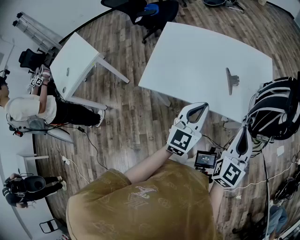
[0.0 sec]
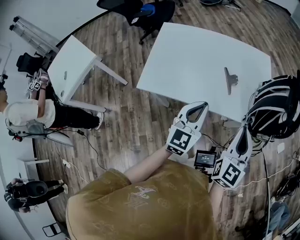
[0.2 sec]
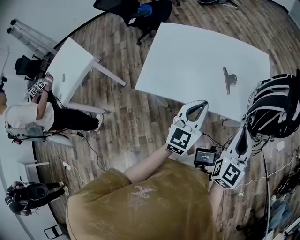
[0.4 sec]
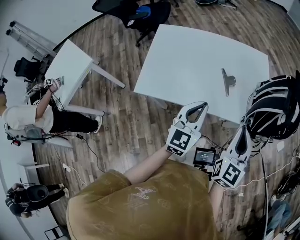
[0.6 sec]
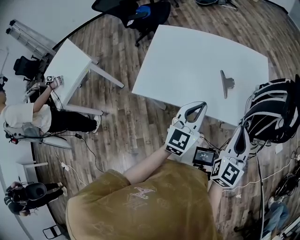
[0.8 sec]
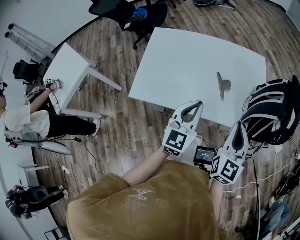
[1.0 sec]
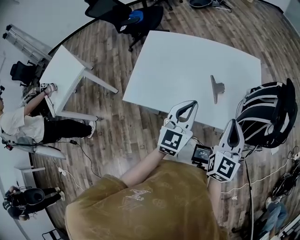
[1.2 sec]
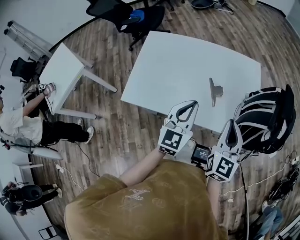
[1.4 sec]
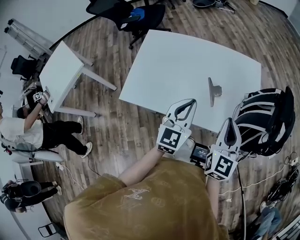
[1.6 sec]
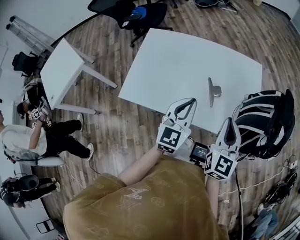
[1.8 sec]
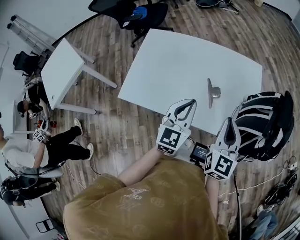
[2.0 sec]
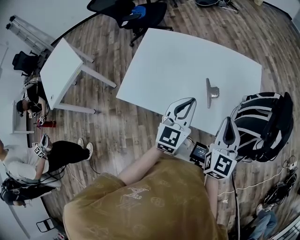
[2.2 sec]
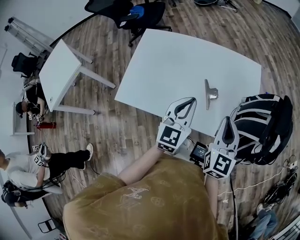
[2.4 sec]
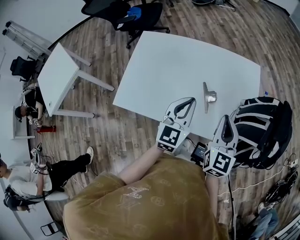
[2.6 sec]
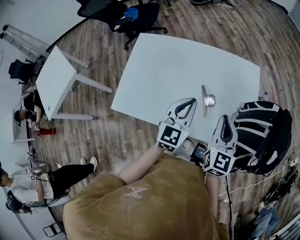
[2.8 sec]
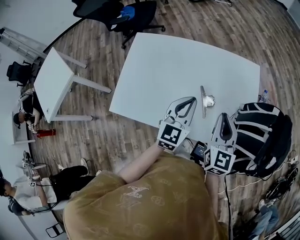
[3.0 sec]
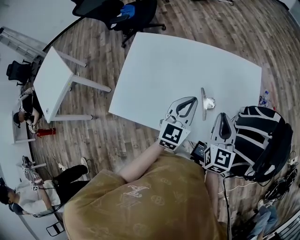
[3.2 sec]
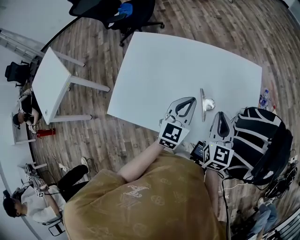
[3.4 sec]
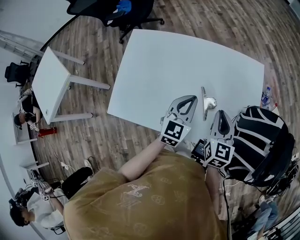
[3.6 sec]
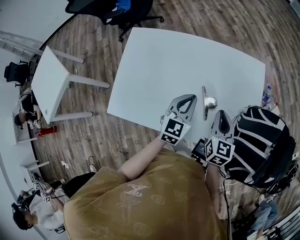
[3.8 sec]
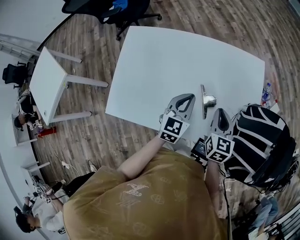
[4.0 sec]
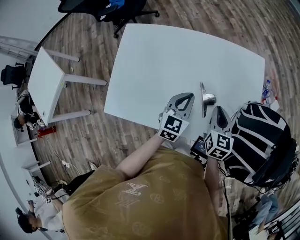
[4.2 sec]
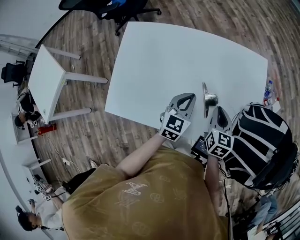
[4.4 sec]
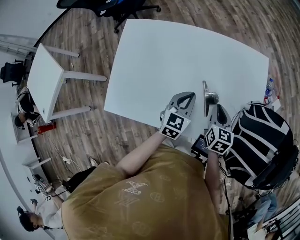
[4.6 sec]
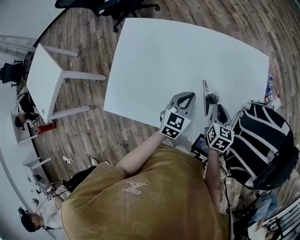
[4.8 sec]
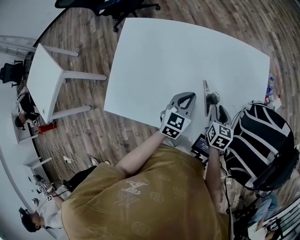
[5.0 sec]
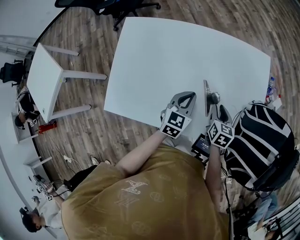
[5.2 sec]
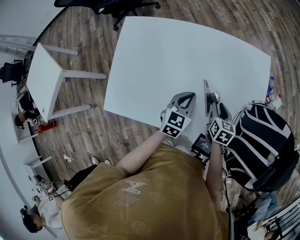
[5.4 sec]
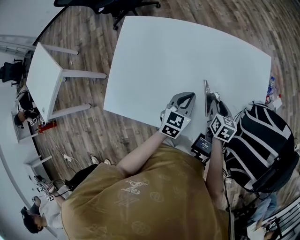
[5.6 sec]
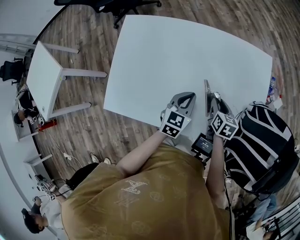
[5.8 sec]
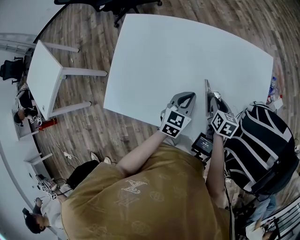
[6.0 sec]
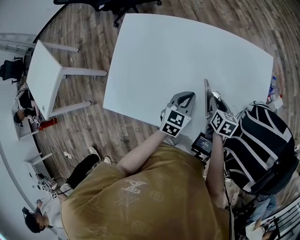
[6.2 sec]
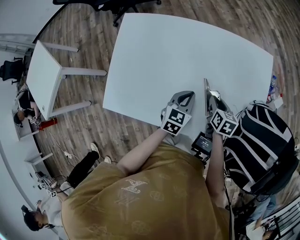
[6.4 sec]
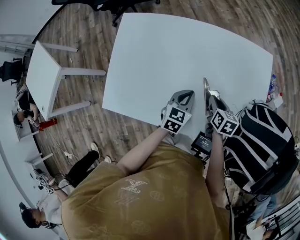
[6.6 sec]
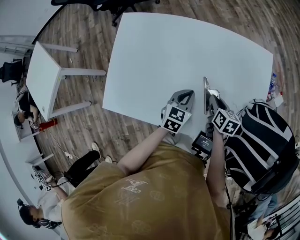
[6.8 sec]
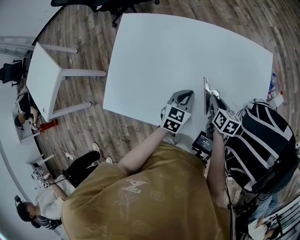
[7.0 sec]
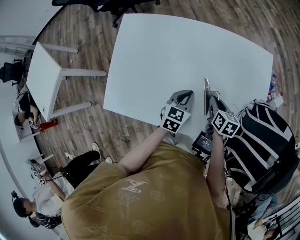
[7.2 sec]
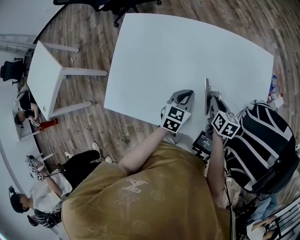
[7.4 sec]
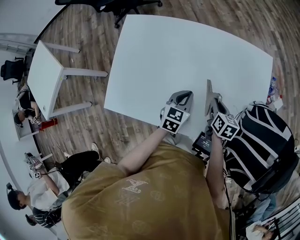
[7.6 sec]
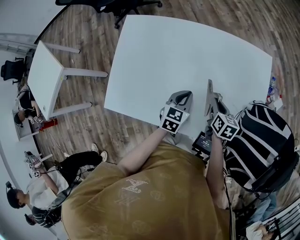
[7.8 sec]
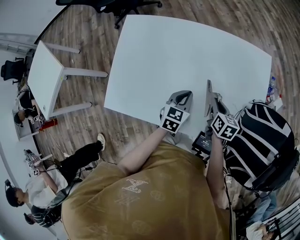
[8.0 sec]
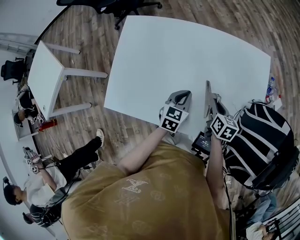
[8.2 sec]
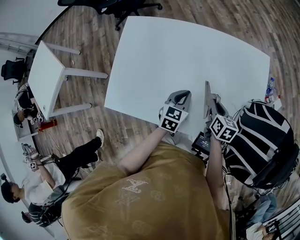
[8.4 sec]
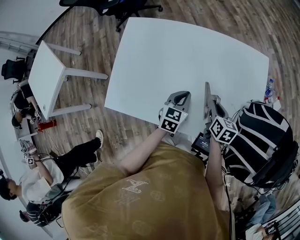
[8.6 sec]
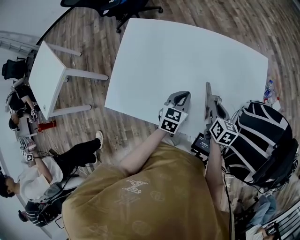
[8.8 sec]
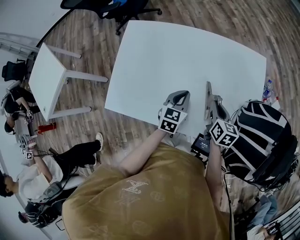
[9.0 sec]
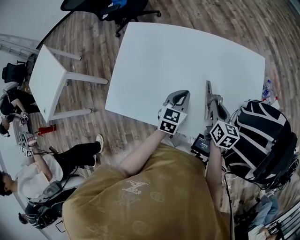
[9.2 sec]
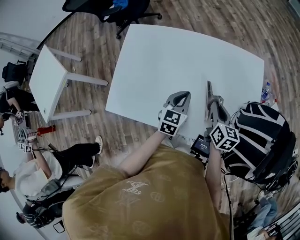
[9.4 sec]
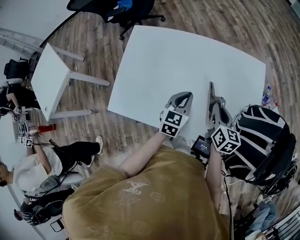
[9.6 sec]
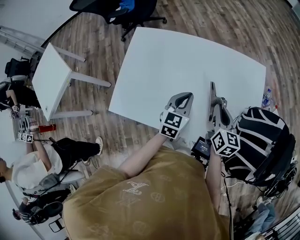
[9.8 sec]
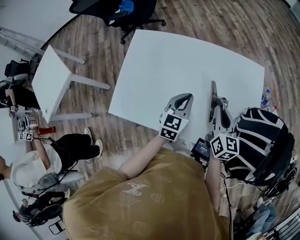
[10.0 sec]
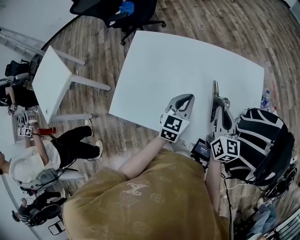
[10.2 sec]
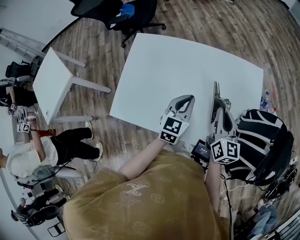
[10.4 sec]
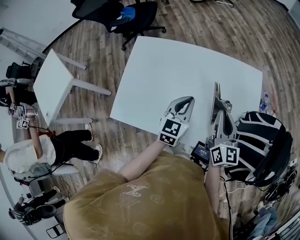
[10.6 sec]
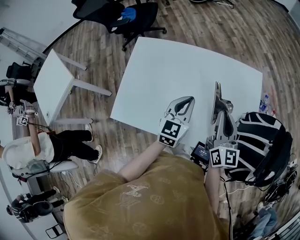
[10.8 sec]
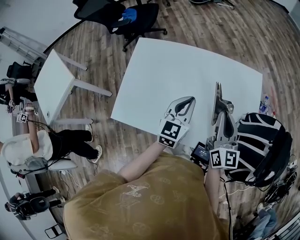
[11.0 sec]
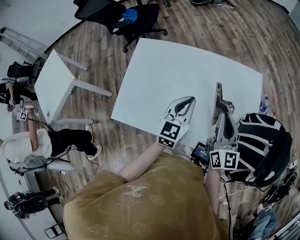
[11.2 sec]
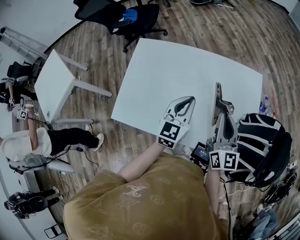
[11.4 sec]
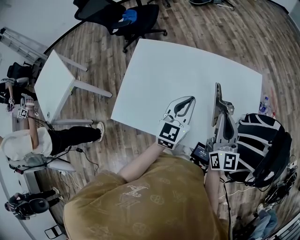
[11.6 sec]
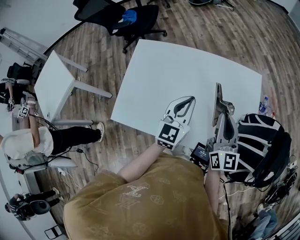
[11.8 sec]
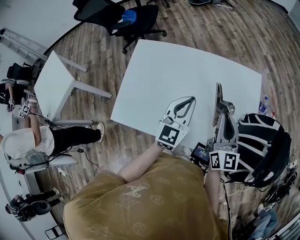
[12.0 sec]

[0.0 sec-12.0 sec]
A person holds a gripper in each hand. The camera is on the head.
0.0 sec to 1.6 sec: The two grippers go roughly 10 cm forward.
1.6 sec to 3.0 sec: Both grippers move forward, about 10 cm.
3.0 sec to 4.4 sec: The grippers both shift downward by approximately 15 cm. The right gripper changes its angle by roughly 20 degrees.
4.4 sec to 6.0 sec: The right gripper is displaced downward by approximately 10 cm, and opens.
6.0 sec to 7.6 sec: The grippers move only a little.
7.6 sec to 9.0 sec: The right gripper moves upward, some 5 cm.
9.0 sec to 10.4 sec: The two grippers go some 10 cm upward. The right gripper turns by some 30 degrees.
10.4 sec to 12.0 sec: The grippers both shift upward by some 5 cm.

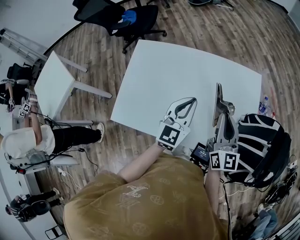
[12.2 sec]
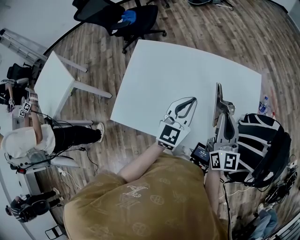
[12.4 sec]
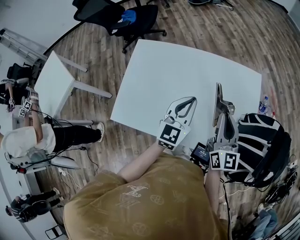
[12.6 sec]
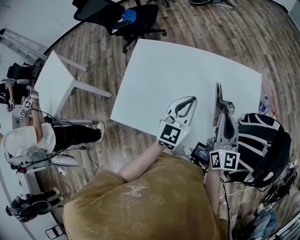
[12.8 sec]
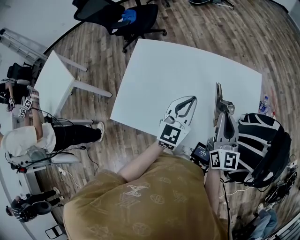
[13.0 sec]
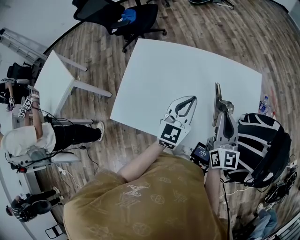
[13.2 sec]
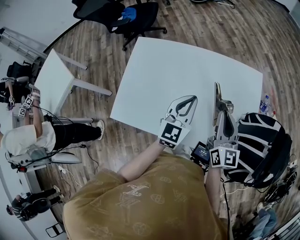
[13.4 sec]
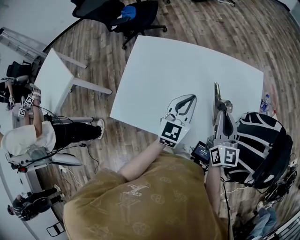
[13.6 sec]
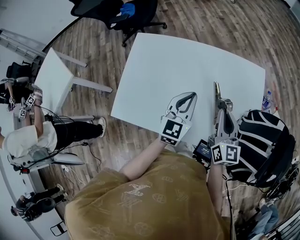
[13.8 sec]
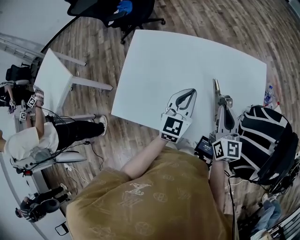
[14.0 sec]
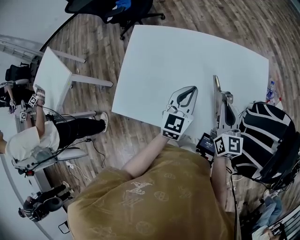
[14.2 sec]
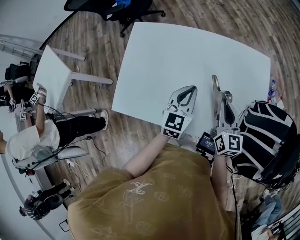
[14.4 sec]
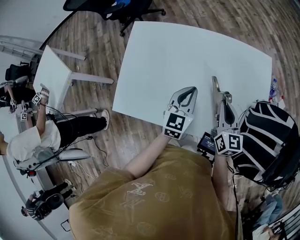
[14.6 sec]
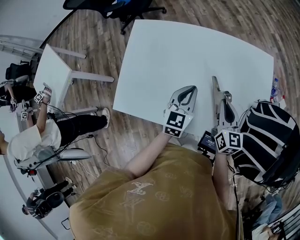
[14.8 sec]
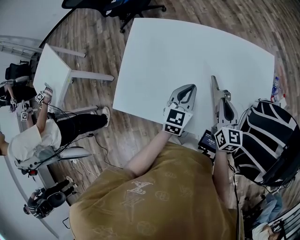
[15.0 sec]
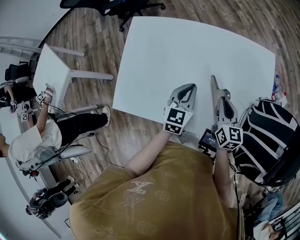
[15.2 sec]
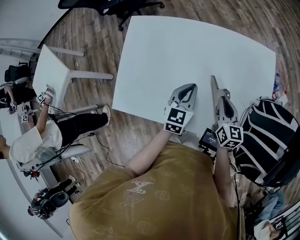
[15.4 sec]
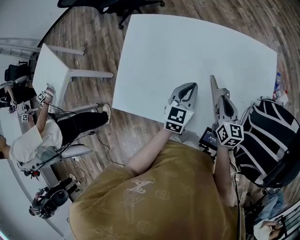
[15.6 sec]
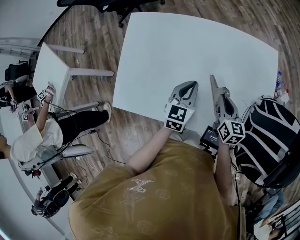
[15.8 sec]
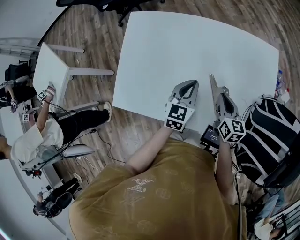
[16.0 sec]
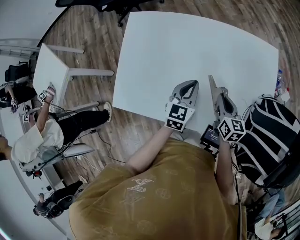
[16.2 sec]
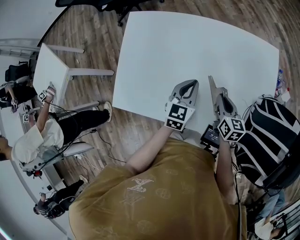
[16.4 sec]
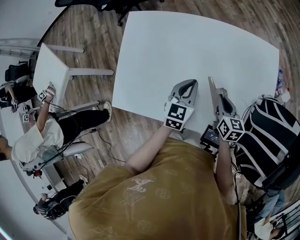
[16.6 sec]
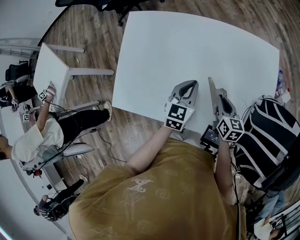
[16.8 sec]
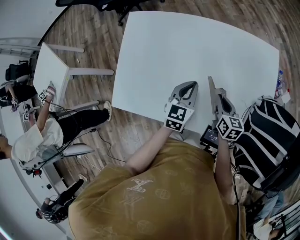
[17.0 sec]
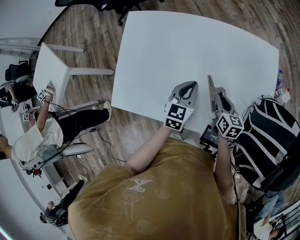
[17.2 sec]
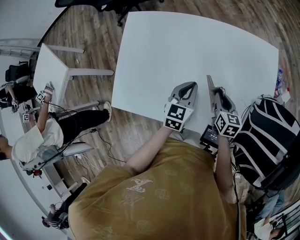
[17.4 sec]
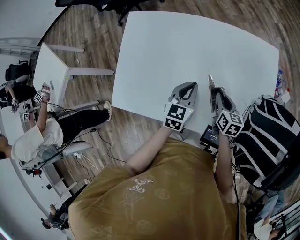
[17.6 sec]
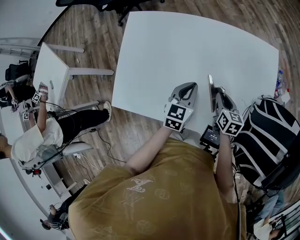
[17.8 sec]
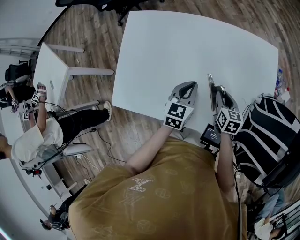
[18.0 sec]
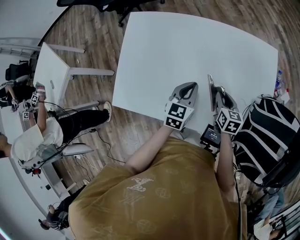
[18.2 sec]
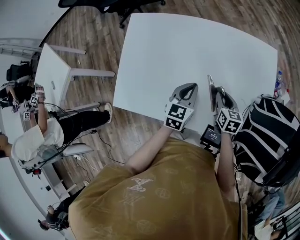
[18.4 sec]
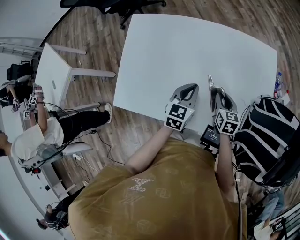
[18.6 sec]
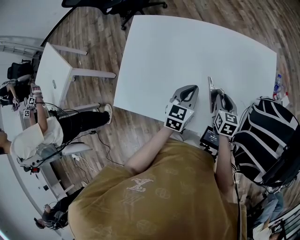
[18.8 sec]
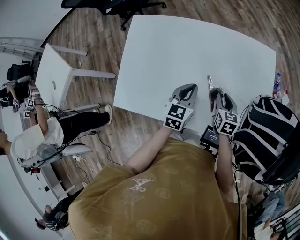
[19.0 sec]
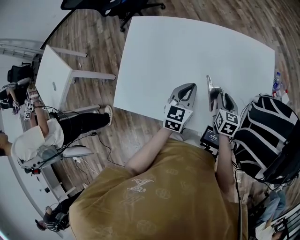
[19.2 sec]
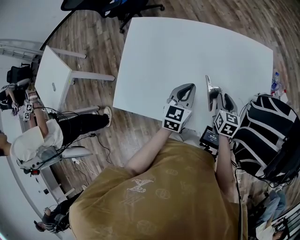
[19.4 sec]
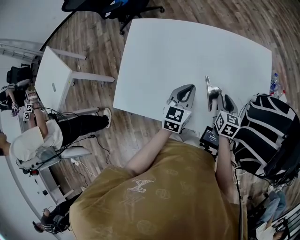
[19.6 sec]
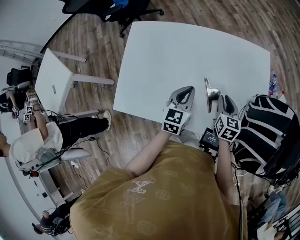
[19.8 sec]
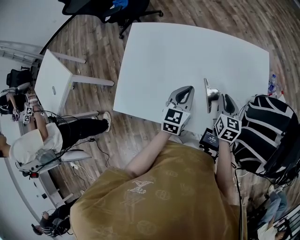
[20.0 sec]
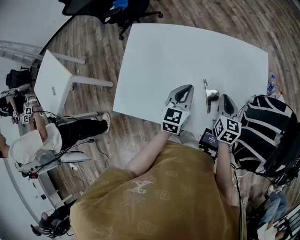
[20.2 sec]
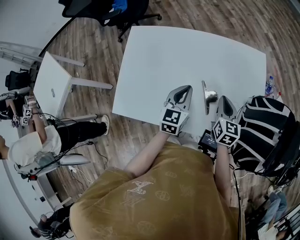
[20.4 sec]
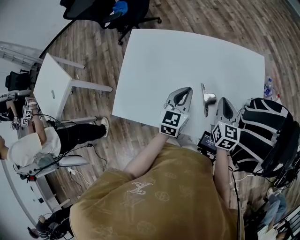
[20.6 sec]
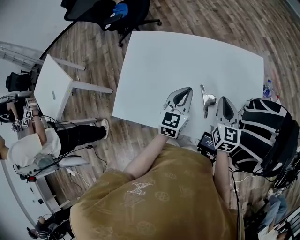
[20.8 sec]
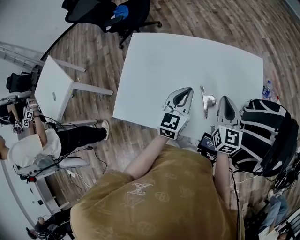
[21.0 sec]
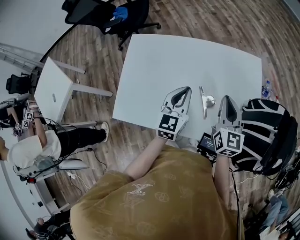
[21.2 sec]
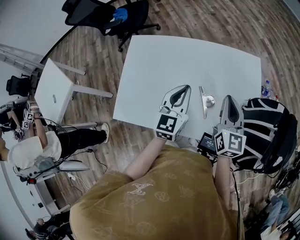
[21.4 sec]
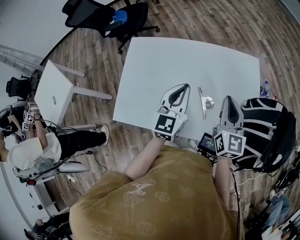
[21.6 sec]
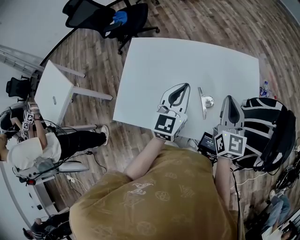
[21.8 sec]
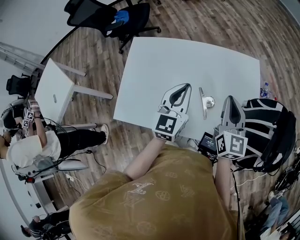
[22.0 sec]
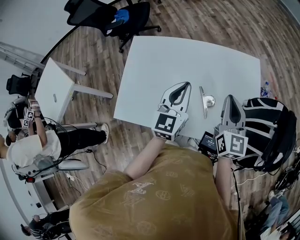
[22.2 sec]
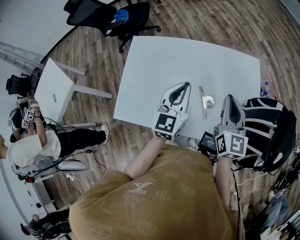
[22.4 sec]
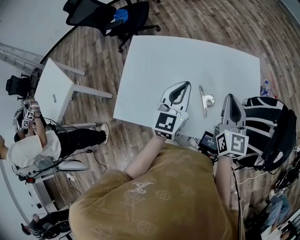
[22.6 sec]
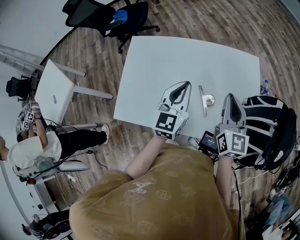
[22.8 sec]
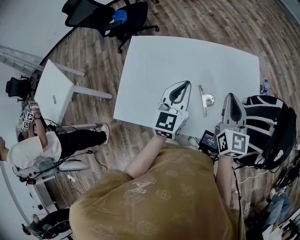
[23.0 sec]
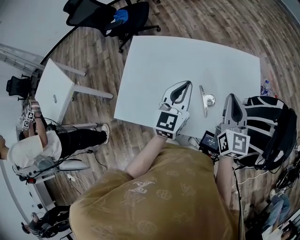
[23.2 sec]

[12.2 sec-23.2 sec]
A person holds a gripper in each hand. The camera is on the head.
12.2 sec to 13.8 sec: The right gripper moves approximately 5 cm.
13.8 sec to 15.4 sec: Both grippers travel together downward, approximately 10 cm.
15.4 sec to 17.0 sec: The right gripper shifts about 5 cm downward.
17.0 sec to 18.4 sec: There are only small adjustments of the grippers.
18.4 sec to 20.0 sec: The right gripper moves upward, roughly 5 cm.
20.0 sec to 21.6 sec: Both grippers travel together upward, approximately 15 cm. The right gripper turns by some 20 degrees.
21.6 sec to 23.2 sec: The grippers make only small movements.
